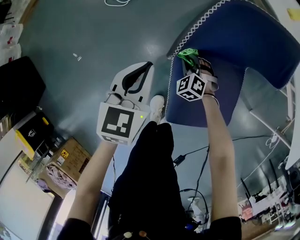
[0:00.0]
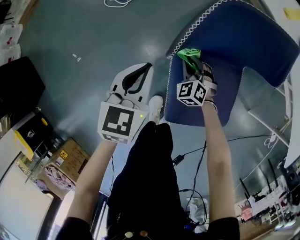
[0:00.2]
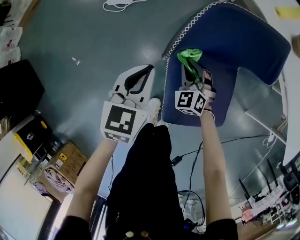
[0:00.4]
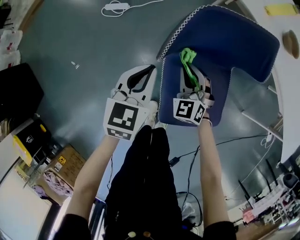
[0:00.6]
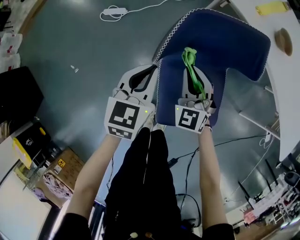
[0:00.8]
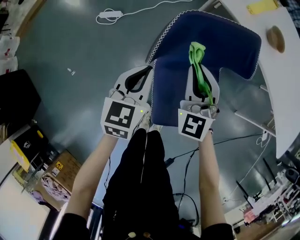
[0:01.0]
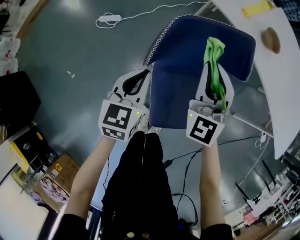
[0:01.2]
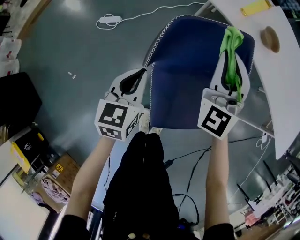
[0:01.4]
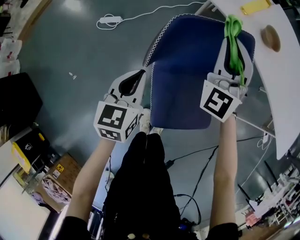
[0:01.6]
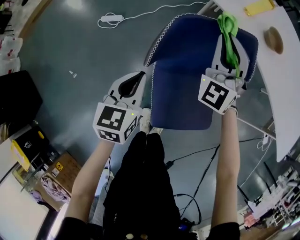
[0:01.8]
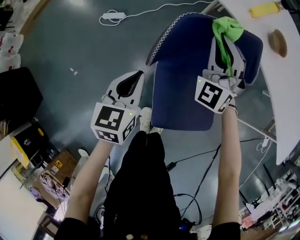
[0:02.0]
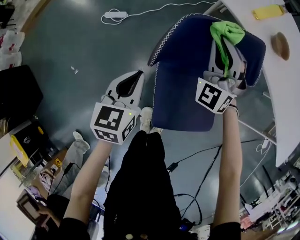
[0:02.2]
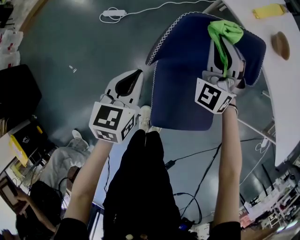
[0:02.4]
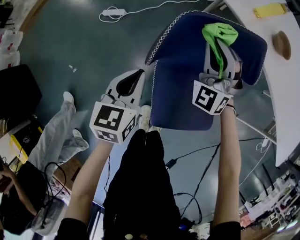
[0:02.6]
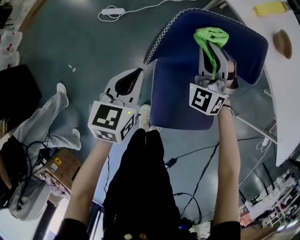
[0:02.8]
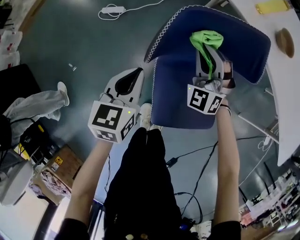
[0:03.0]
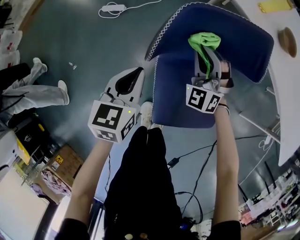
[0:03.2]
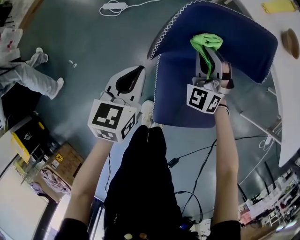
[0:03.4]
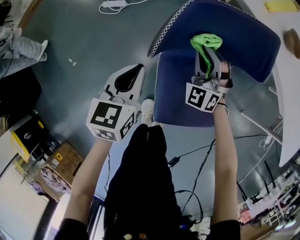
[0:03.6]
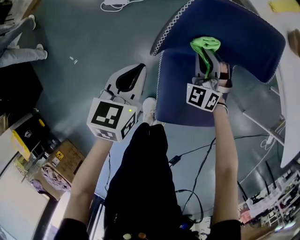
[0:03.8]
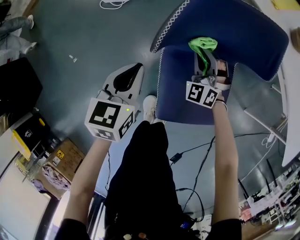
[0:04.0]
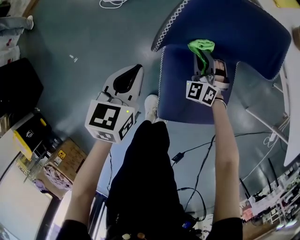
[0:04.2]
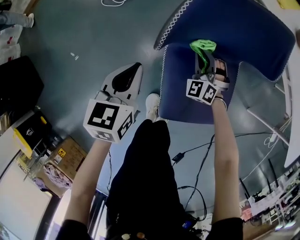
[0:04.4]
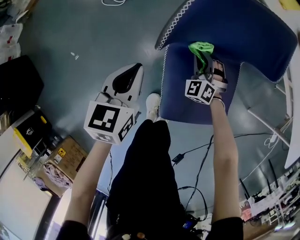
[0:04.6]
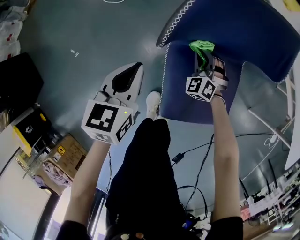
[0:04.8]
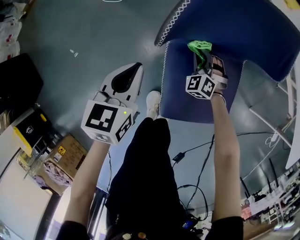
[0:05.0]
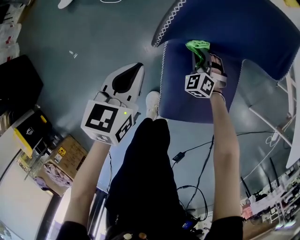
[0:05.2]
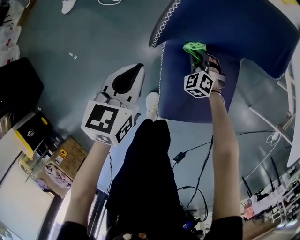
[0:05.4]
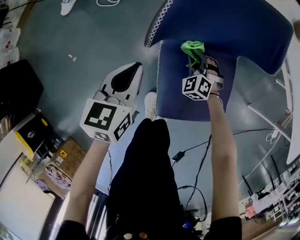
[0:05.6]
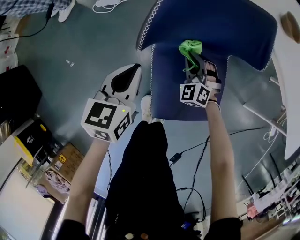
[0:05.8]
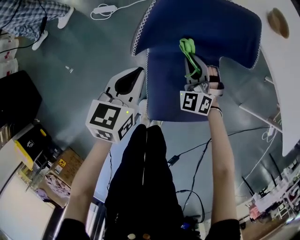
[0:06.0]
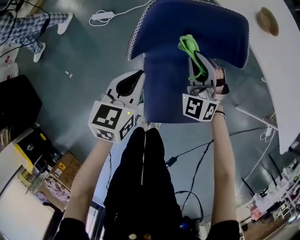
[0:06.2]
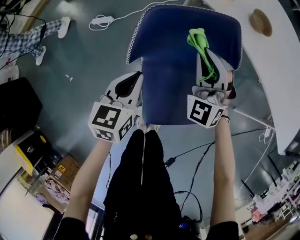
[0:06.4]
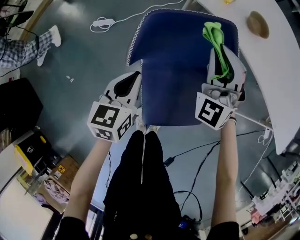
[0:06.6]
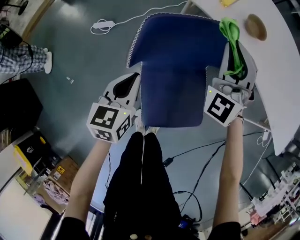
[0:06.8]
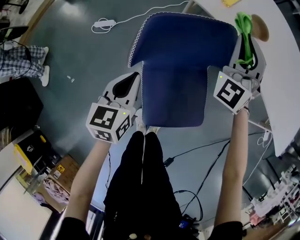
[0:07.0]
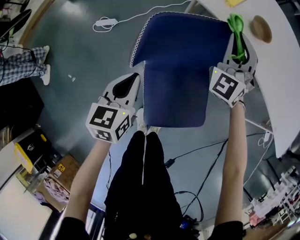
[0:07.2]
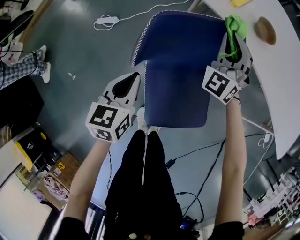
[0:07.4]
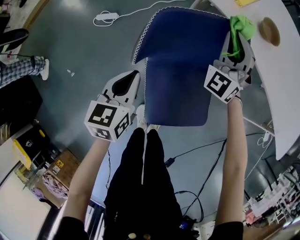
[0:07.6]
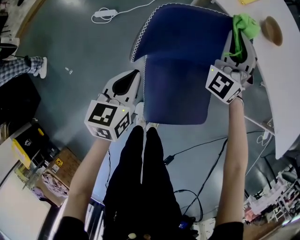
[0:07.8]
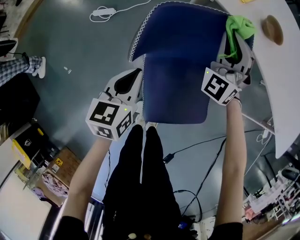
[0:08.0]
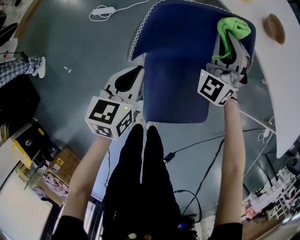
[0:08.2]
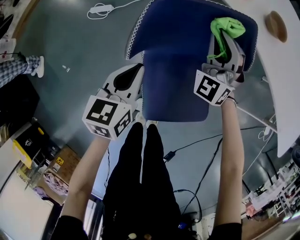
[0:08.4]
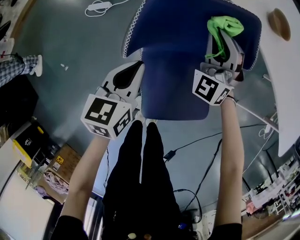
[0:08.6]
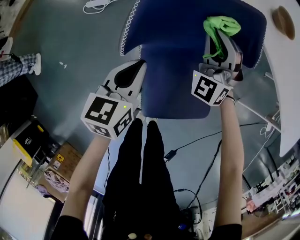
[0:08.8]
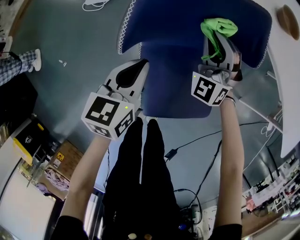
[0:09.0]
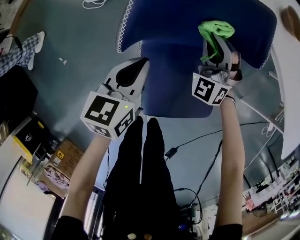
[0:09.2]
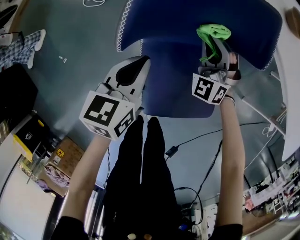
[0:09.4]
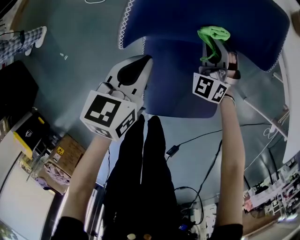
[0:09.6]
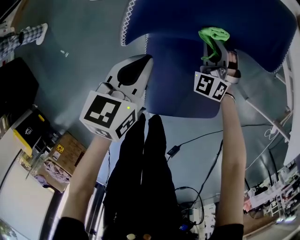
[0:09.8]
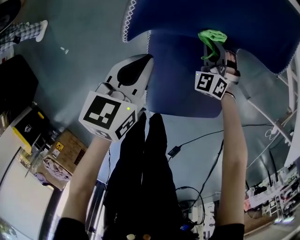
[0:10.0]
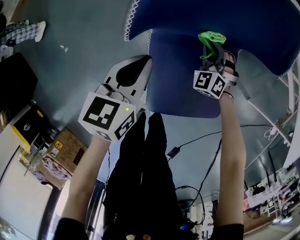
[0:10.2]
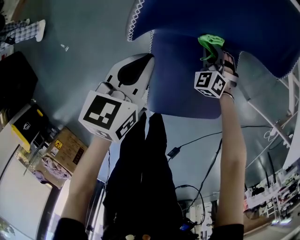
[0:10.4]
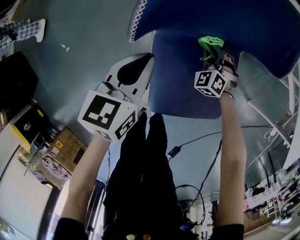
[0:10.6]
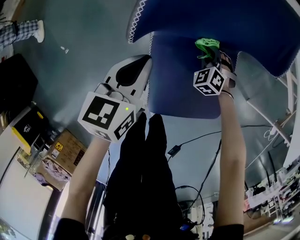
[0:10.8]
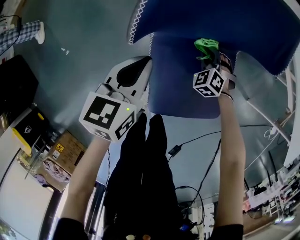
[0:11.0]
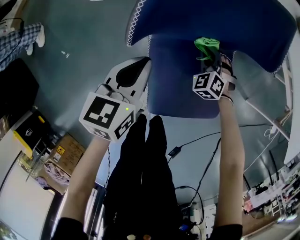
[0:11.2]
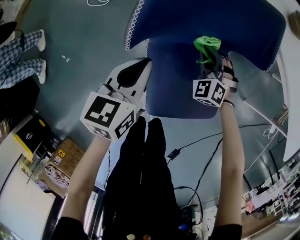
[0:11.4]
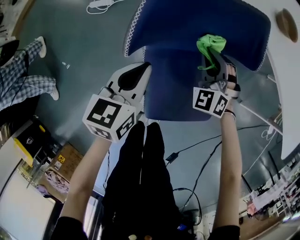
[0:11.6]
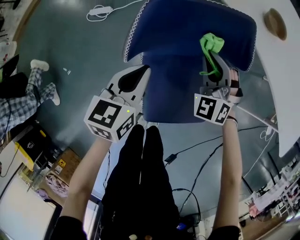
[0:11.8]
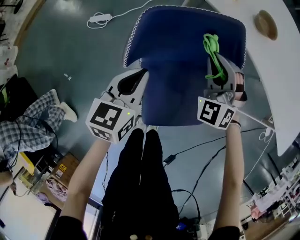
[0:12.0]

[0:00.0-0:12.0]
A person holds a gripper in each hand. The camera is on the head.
0.0 to 1.6 s: The left gripper moves upward and to the right, about 10 cm. Meanwhile the right gripper goes approximately 40 cm upward, and points its fingers some 50 degrees further upward.
1.6 to 3.0 s: The right gripper is displaced downward by roughly 15 cm, and swivels roughly 20 degrees.
3.0 to 4.4 s: The right gripper shifts approximately 15 cm downward.
4.4 to 6.0 s: The right gripper goes roughly 10 cm upward, while the left gripper heads to the right, covering some 5 cm.
6.0 to 7.6 s: The right gripper goes roughly 25 cm upward and forward, and changes its angle by roughly 30 degrees.
7.6 to 9.0 s: The right gripper moves downward and backward, roughly 15 cm. Meanwhile the left gripper is displaced downward by approximately 5 cm.
9.0 to 10.4 s: The right gripper heads downward, covering about 20 cm, and points its fingers approximately 30 degrees further downward.
10.4 to 12.0 s: The right gripper heads upward, covering roughly 30 cm, and rotates some 20 degrees. Meanwhile the left gripper travels upward by some 10 cm.

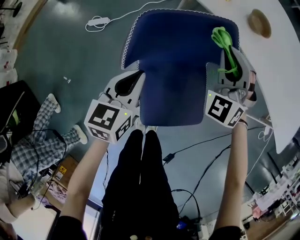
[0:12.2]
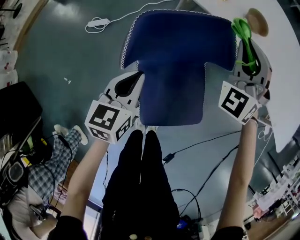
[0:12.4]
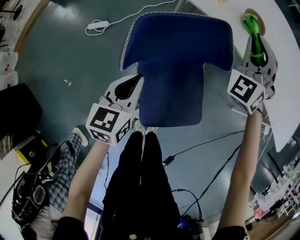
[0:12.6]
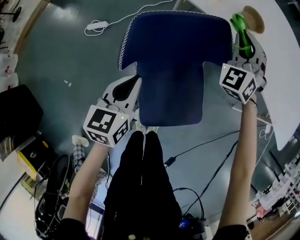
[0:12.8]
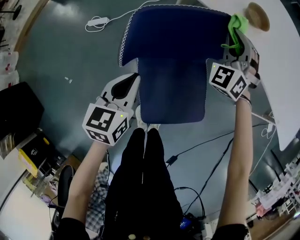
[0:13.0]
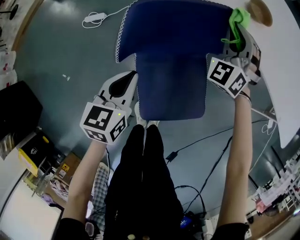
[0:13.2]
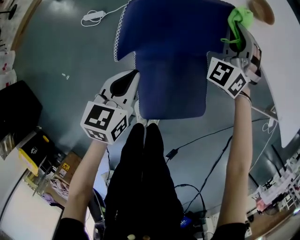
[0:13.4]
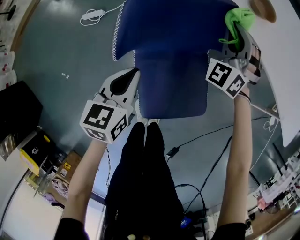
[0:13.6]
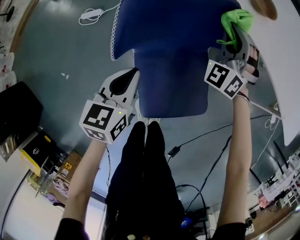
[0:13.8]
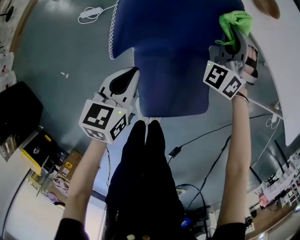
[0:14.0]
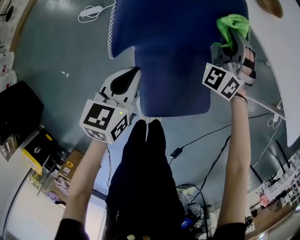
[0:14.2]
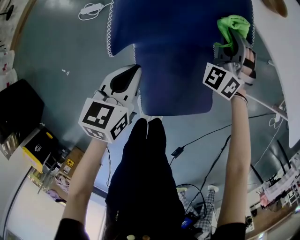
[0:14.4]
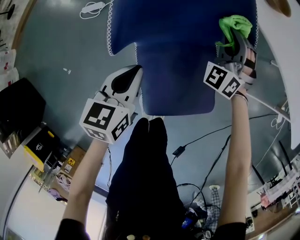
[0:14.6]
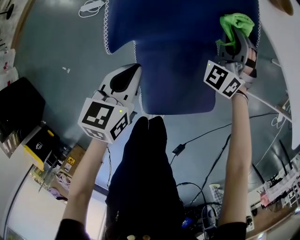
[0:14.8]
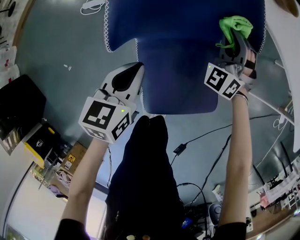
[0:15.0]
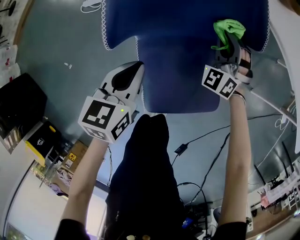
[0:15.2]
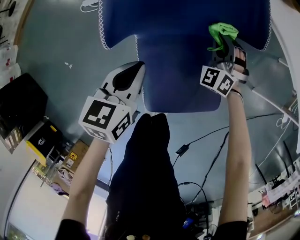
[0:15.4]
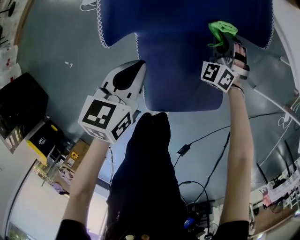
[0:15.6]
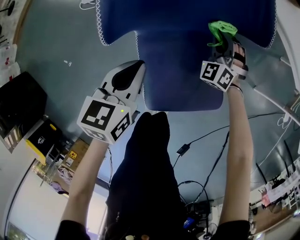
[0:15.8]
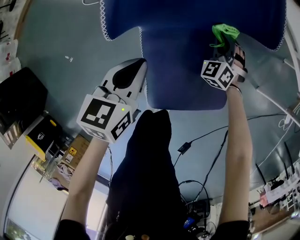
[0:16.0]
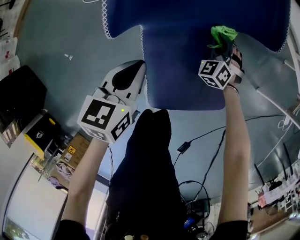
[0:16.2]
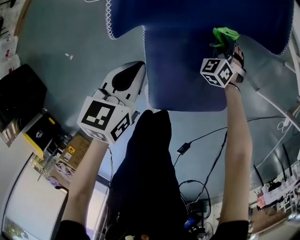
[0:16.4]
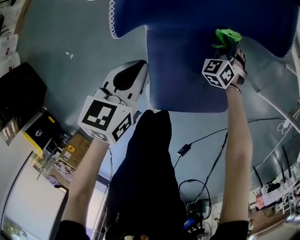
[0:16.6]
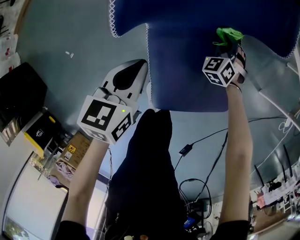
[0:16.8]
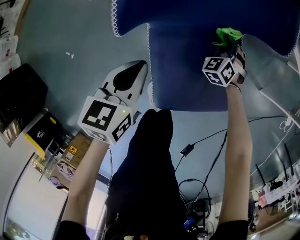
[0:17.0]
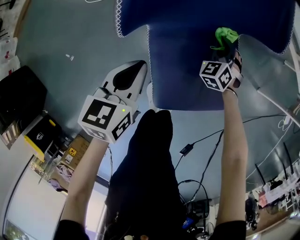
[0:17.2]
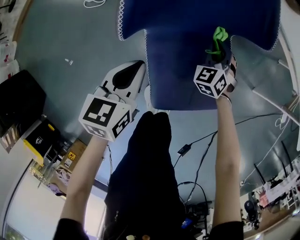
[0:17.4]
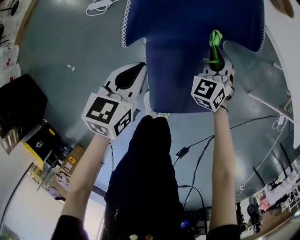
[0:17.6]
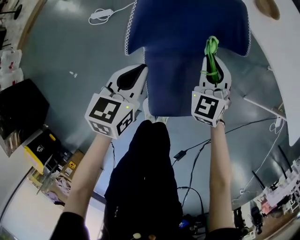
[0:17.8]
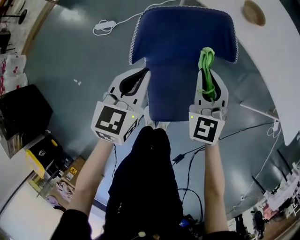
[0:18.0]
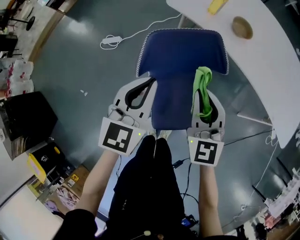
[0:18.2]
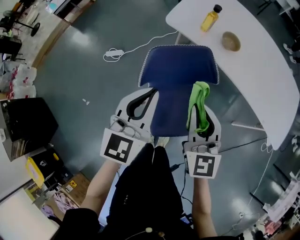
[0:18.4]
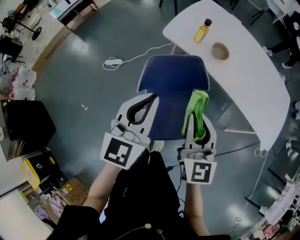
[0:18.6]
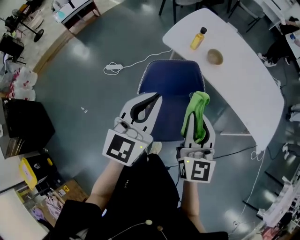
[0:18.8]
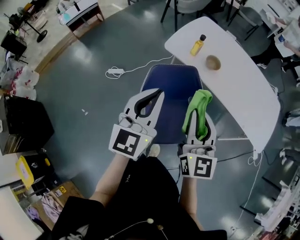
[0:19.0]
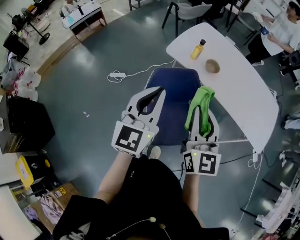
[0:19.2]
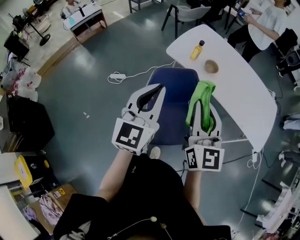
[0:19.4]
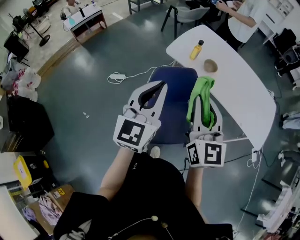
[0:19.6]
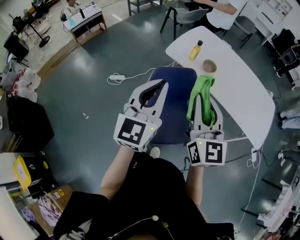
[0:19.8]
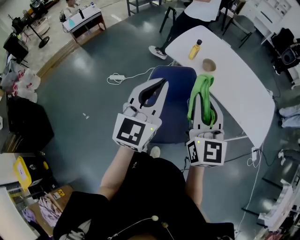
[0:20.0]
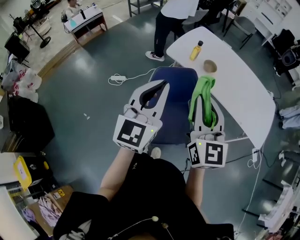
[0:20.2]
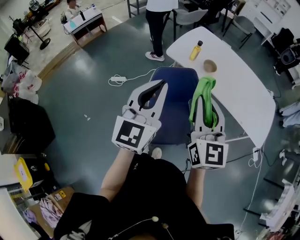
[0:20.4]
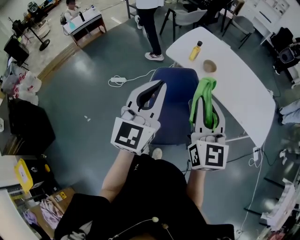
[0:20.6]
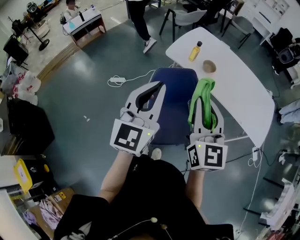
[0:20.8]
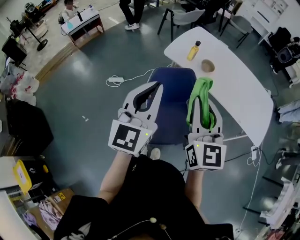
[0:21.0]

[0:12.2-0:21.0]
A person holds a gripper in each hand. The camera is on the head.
12.2 to 13.6 s: The right gripper travels forward by some 5 cm.
13.6 to 15.2 s: The left gripper is displaced downward by roughly 5 cm; the right gripper heads downward, covering about 15 cm.
15.2 to 16.6 s: The right gripper moves downward, approximately 15 cm, and turns by some 20 degrees.
16.6 to 18.0 s: The right gripper is displaced upward by about 35 cm, and rotates roughly 40 degrees. The left gripper is displaced upward by roughly 15 cm.
18.0 to 19.6 s: The two grippers go about 35 cm upward. The left gripper tips its fingers upward by roughly 30 degrees; the right gripper swivels about 30 degrees.
19.6 to 21.0 s: The grippers stay close to where they were, moving slightly.

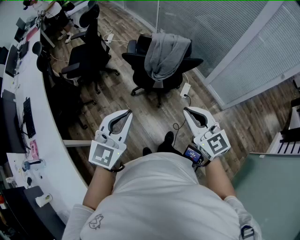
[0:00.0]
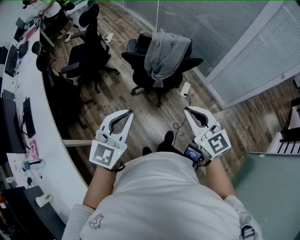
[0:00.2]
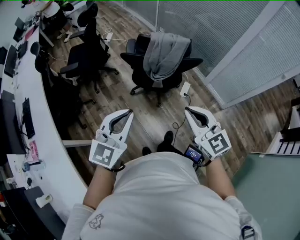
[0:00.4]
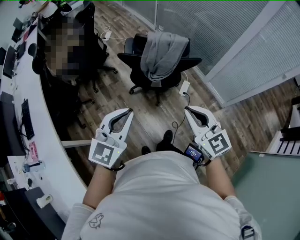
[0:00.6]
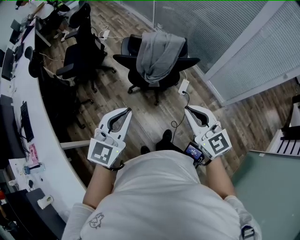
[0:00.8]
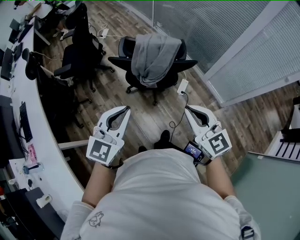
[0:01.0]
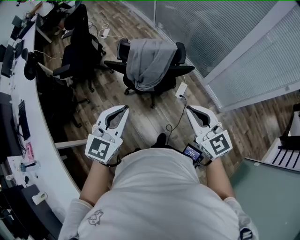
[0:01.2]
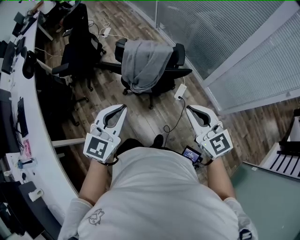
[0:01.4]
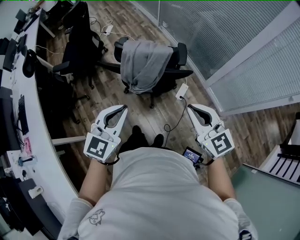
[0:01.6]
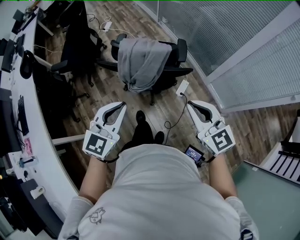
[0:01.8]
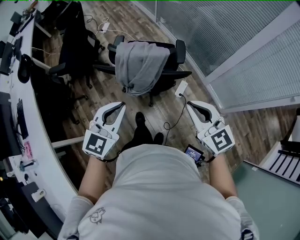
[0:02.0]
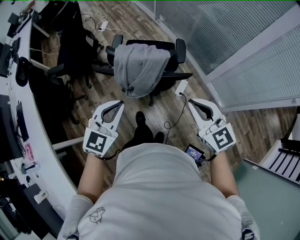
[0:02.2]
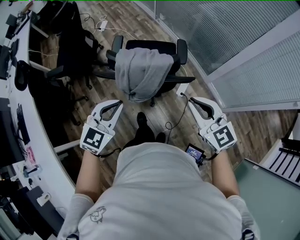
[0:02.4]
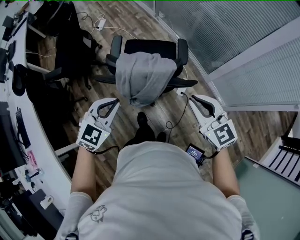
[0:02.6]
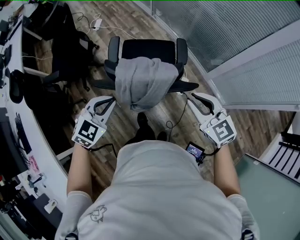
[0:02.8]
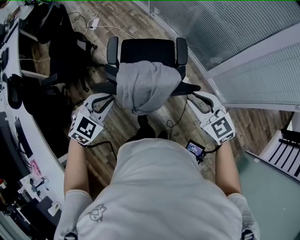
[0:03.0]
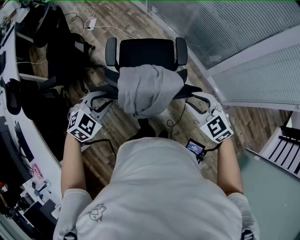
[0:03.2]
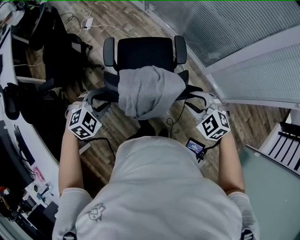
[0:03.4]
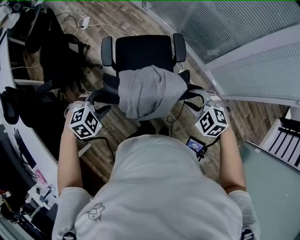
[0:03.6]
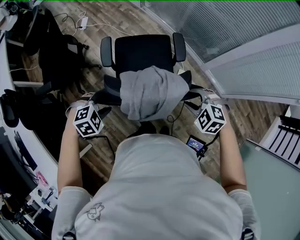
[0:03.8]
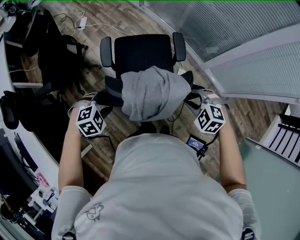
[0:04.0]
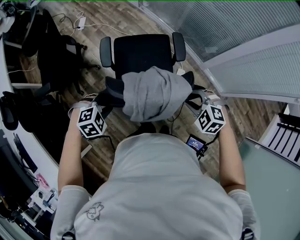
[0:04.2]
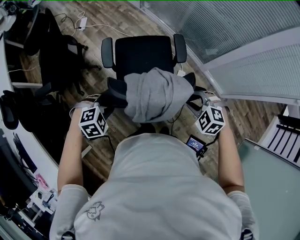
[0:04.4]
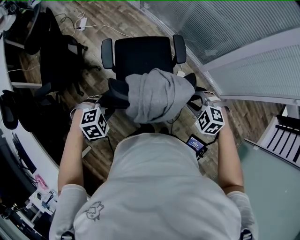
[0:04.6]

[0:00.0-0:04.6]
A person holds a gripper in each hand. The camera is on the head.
0.0 to 1.6 s: The left gripper goes approximately 25 cm forward and to the right, while the right gripper heads to the right and forward, covering about 25 cm.
1.6 to 3.0 s: The grippers both shift forward and downward by some 25 cm. The left gripper swivels roughly 30 degrees. The right gripper opens up.
3.0 to 4.6 s: The left gripper shifts roughly 15 cm downward and to the left, and changes its angle by about 40 degrees, while the right gripper goes some 10 cm downward, and points its fingers about 30 degrees further downward.
